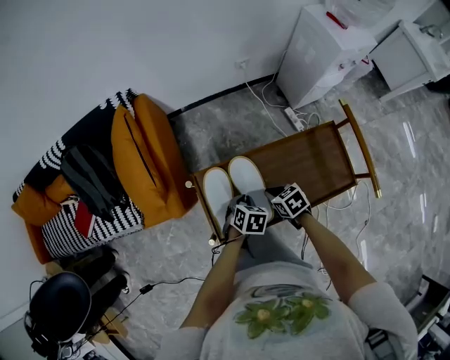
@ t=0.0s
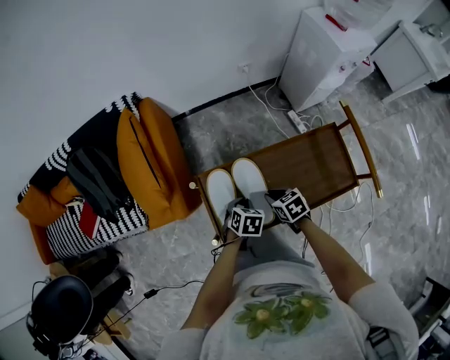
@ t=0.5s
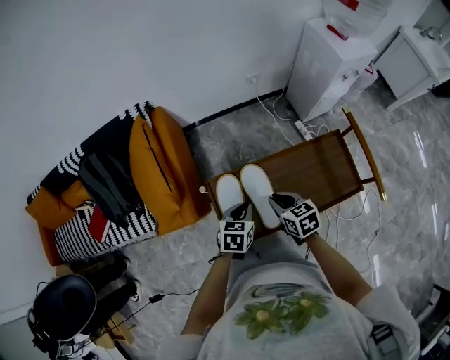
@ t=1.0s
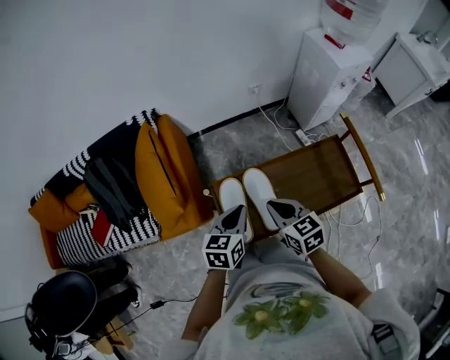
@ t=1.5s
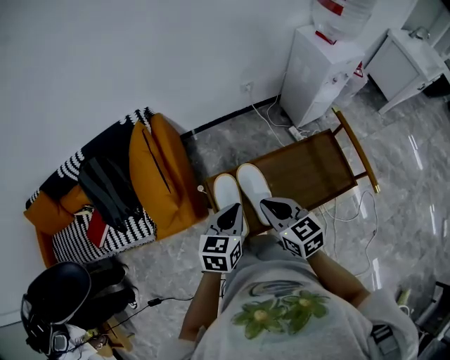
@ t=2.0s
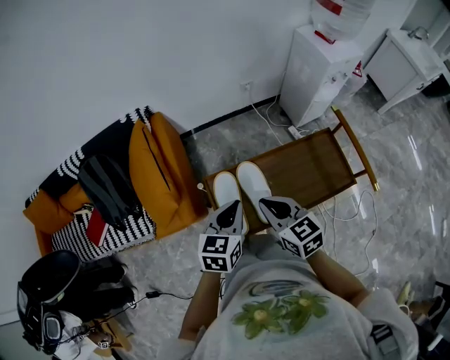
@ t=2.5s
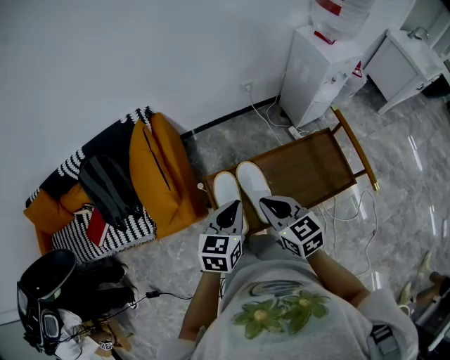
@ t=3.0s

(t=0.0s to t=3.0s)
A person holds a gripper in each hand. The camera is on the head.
t=0.0s - t=1.5s: Both grippers travel together upward, approximately 20 cm. The left gripper tilts its fingers some 30 degrees upward. Meanwhile the right gripper turns by about 30 degrees.
t=1.5s - t=3.0s: The right gripper moves upward, about 5 cm.

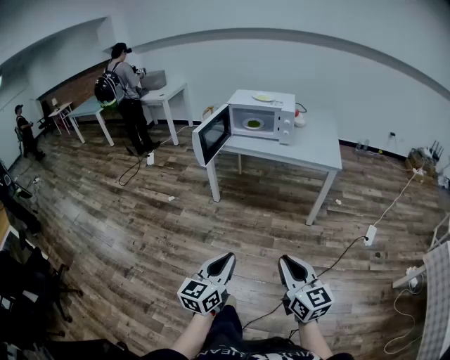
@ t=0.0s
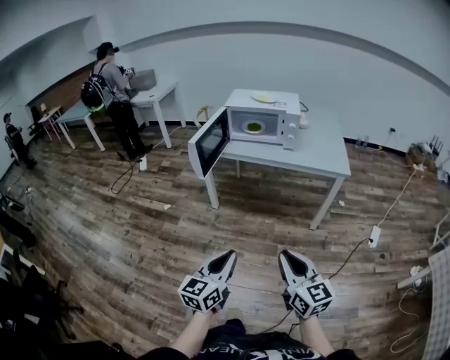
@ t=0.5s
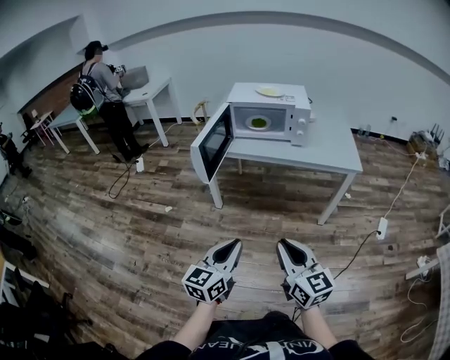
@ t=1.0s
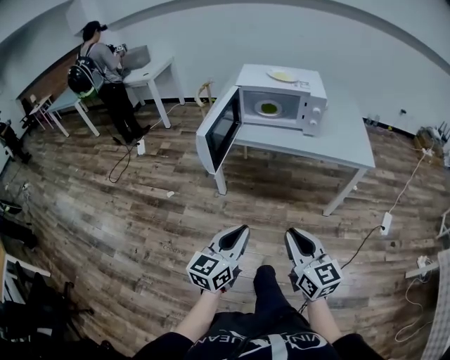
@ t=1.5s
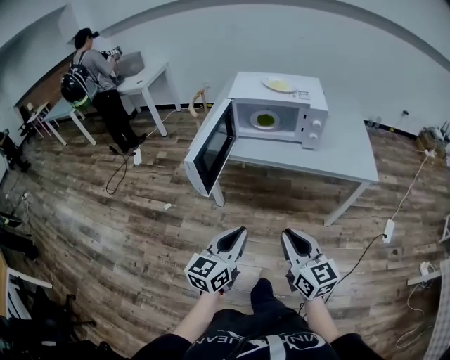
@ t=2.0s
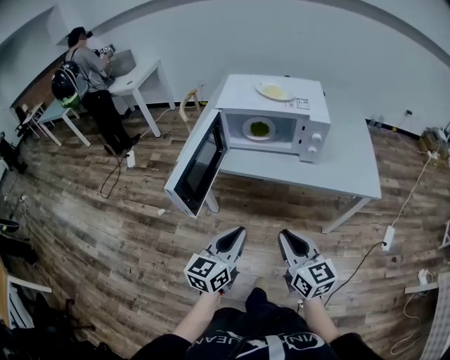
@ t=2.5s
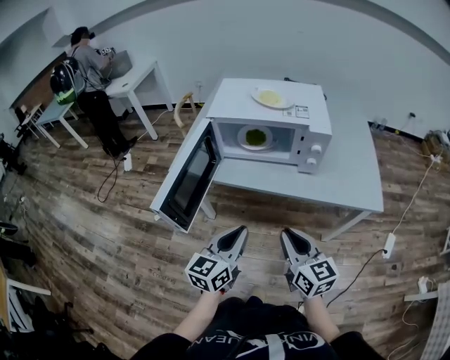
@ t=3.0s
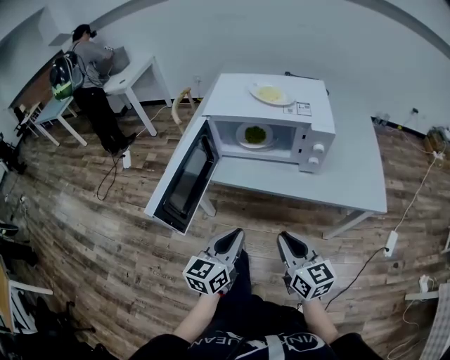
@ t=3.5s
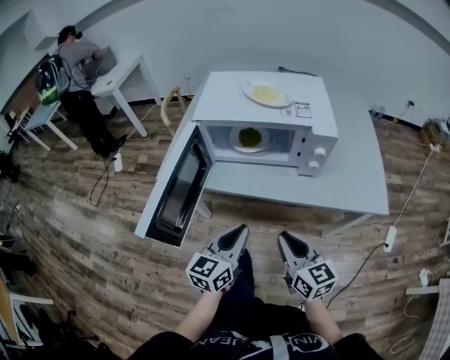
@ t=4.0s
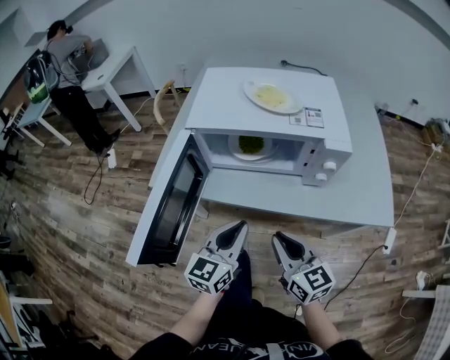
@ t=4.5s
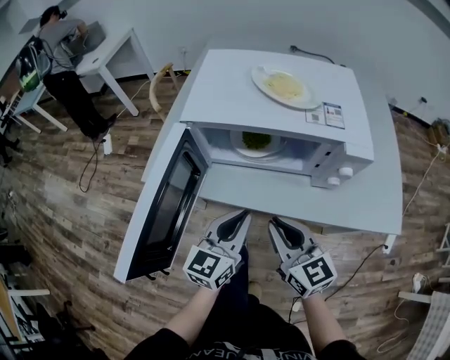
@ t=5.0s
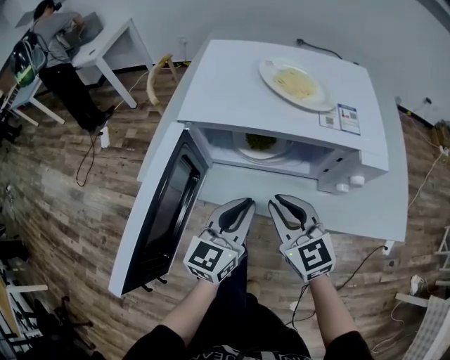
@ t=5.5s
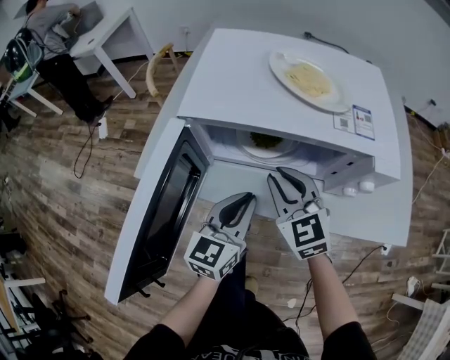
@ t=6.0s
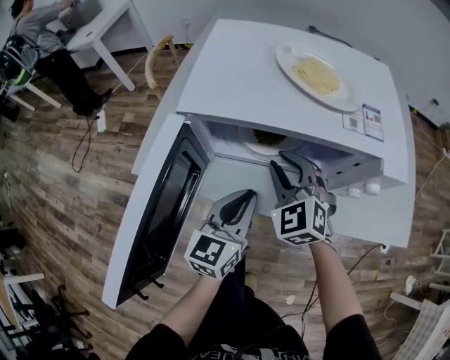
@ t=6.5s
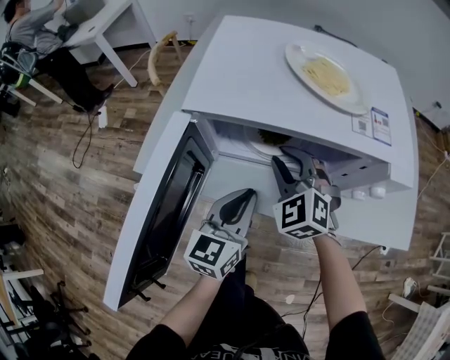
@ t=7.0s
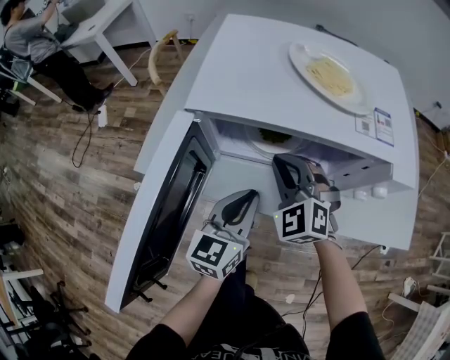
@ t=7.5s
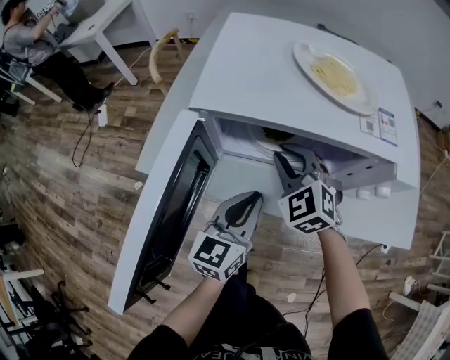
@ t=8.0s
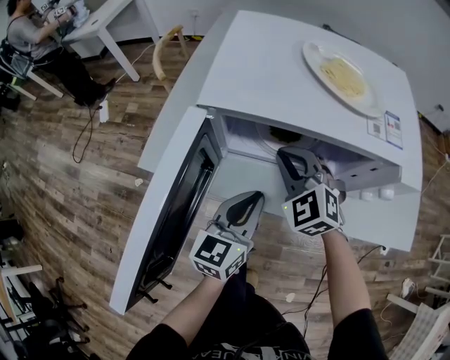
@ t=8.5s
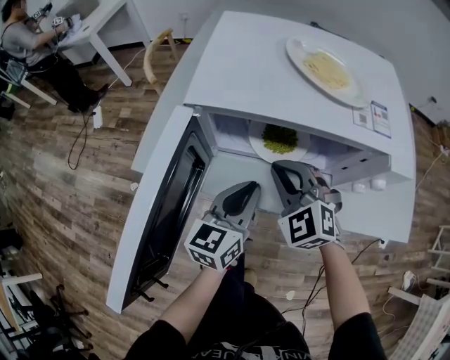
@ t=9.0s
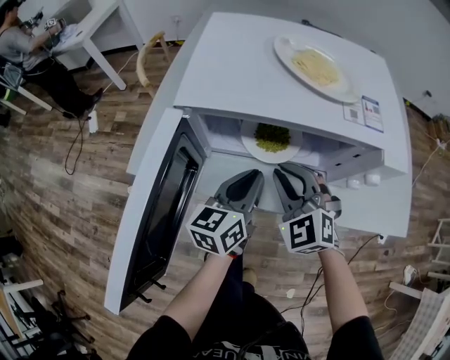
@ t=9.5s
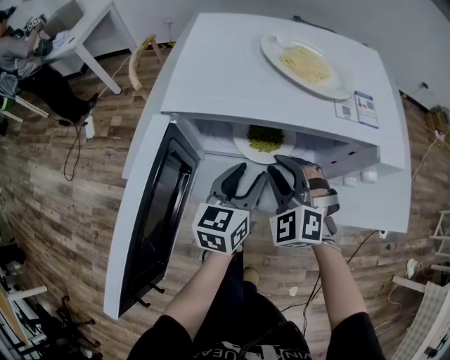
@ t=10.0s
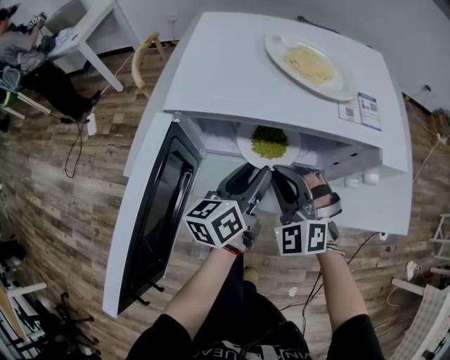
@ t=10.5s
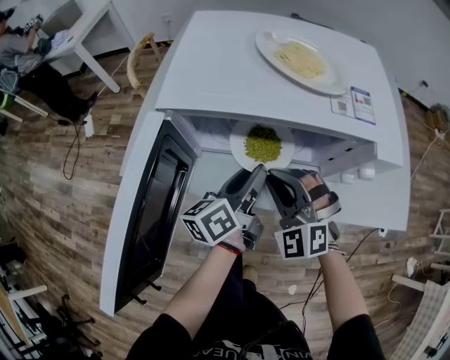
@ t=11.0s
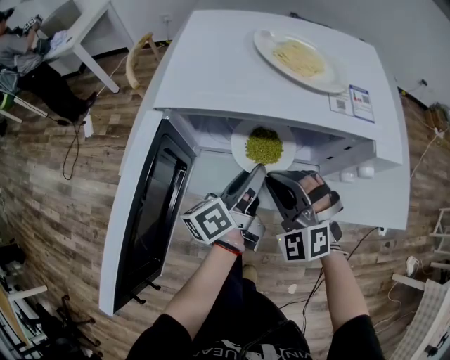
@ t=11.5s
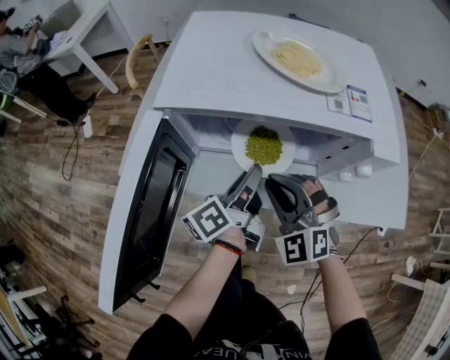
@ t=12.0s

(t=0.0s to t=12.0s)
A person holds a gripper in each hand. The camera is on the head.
t=0.0s - t=2.0s: Both grippers move forward, approximately 35 cm.
t=2.0s - t=4.0s: Both grippers travel together forward, approximately 25 cm.
t=4.0s - t=6.0s: Both grippers travel together forward, roughly 20 cm. The right gripper swivels approximately 30 degrees.
t=6.0s - t=8.0s: The right gripper goes approximately 5 cm forward, and changes its angle by approximately 20 degrees.
t=8.0s - t=10.0s: The right gripper moves about 5 cm; the left gripper heads forward, covering roughly 5 cm, and opens up.
t=10.0s - t=12.0s: The right gripper heads backward, covering some 5 cm. Meanwhile the left gripper twists roughly 50 degrees counterclockwise, seen from behind, and closes.

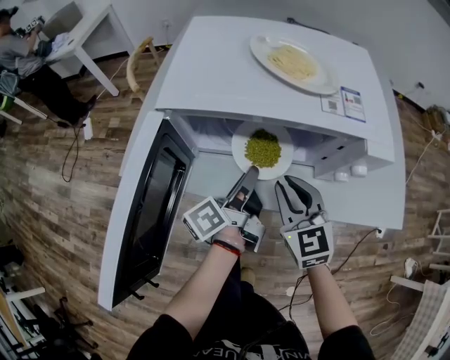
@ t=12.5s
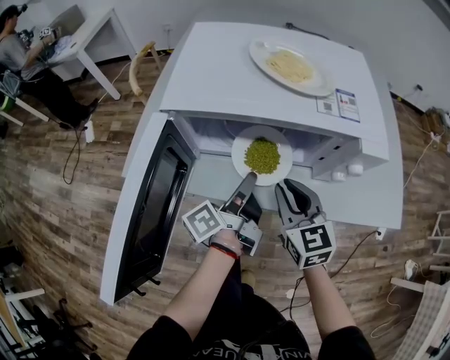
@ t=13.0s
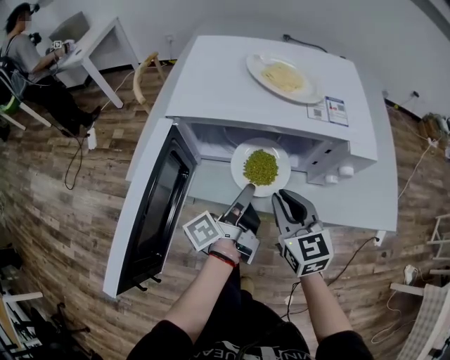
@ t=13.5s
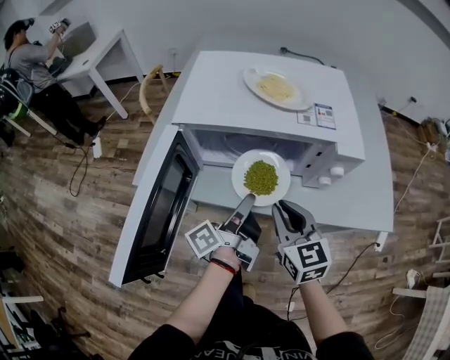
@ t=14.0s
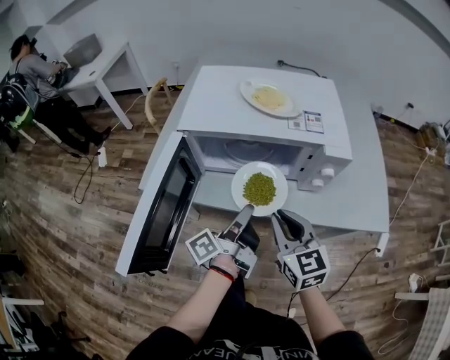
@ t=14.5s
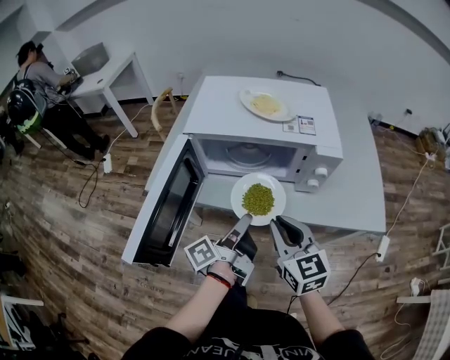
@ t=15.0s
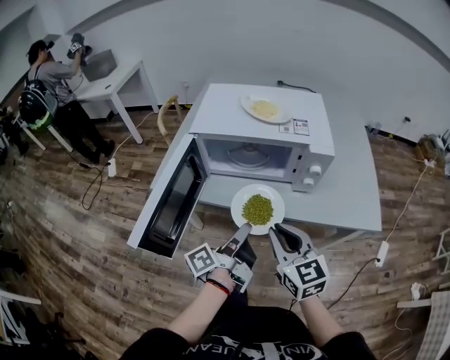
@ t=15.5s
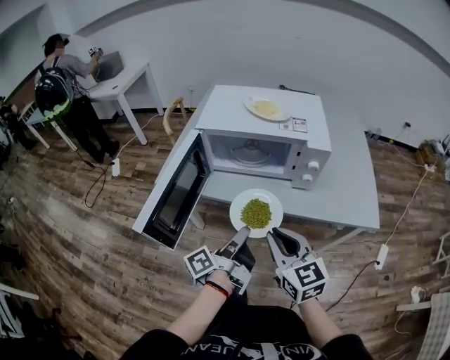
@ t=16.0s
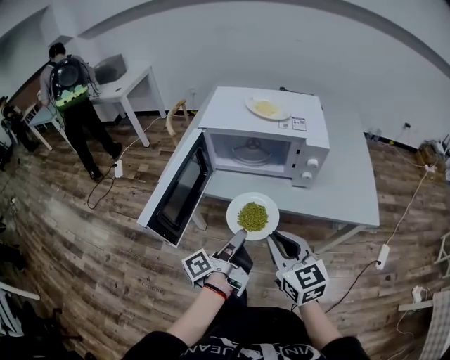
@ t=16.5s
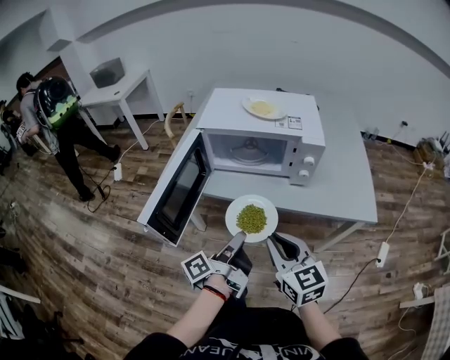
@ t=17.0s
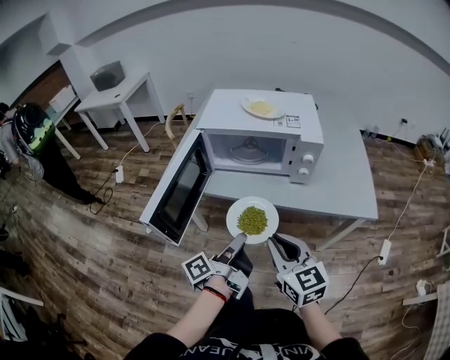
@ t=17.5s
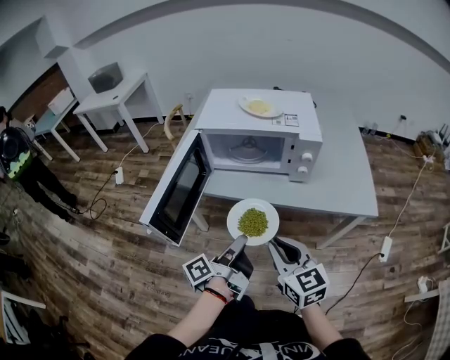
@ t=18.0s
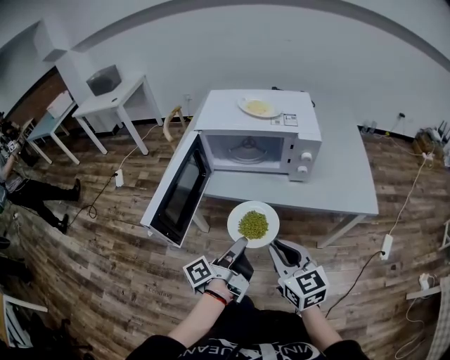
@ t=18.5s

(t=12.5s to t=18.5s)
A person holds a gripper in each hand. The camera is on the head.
t=12.5s - t=14.5s: The right gripper travels backward and upward by about 10 cm, while the left gripper goes approximately 10 cm backward.
t=14.5s - t=16.5s: Both grippers move backward, approximately 15 cm.
t=16.5s - t=18.5s: The grippers move only a little.

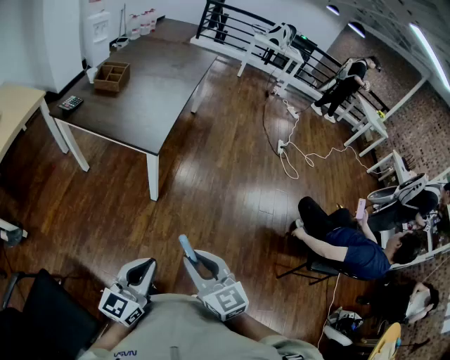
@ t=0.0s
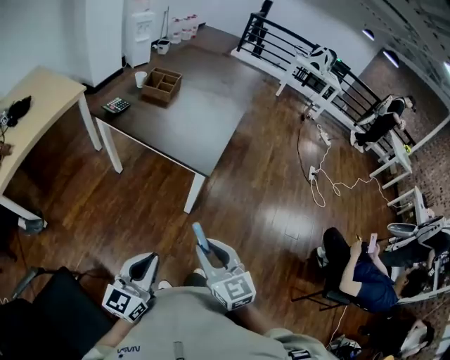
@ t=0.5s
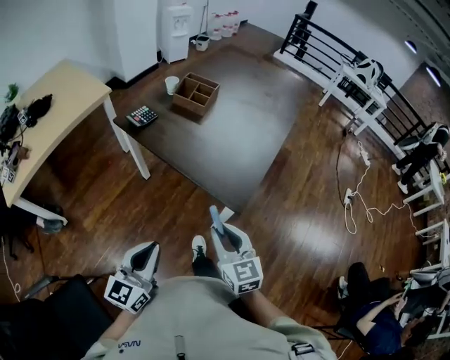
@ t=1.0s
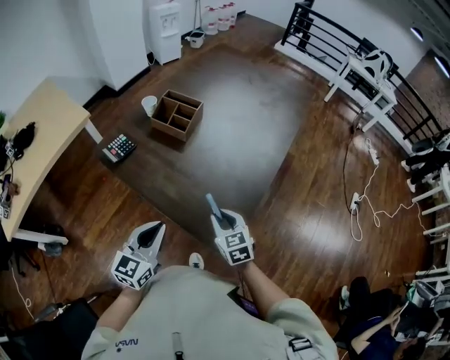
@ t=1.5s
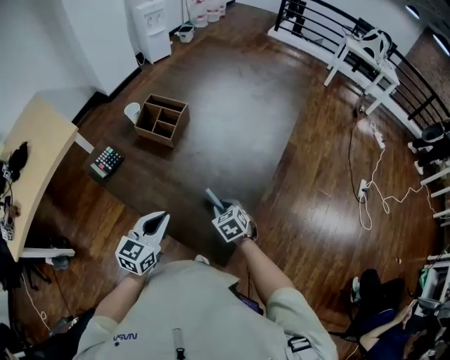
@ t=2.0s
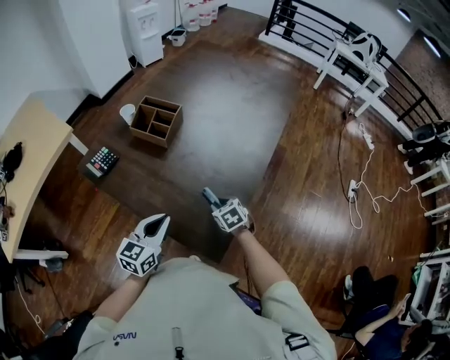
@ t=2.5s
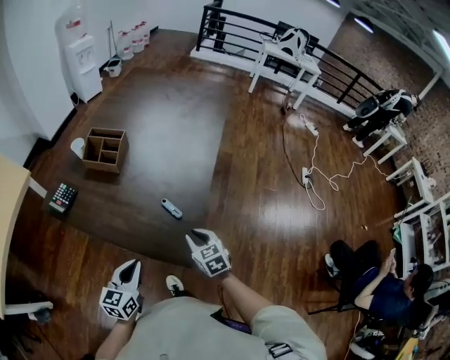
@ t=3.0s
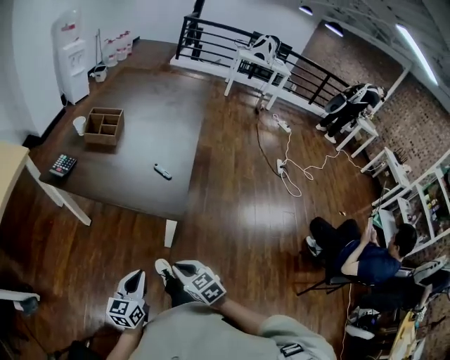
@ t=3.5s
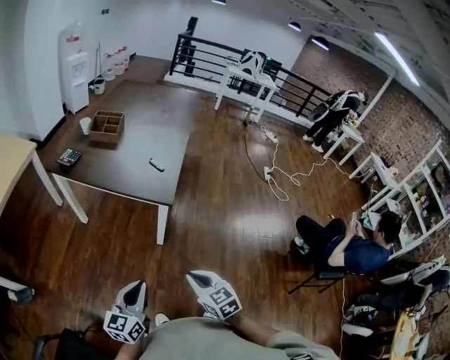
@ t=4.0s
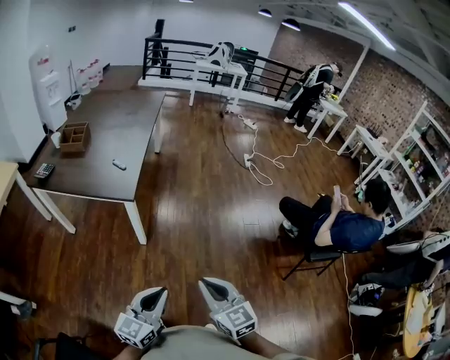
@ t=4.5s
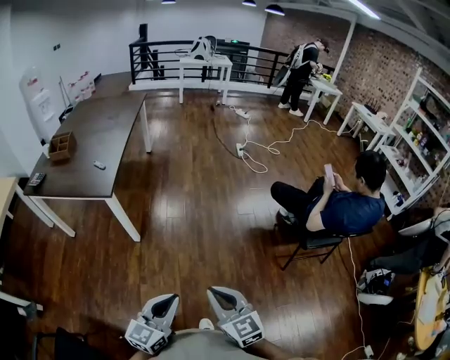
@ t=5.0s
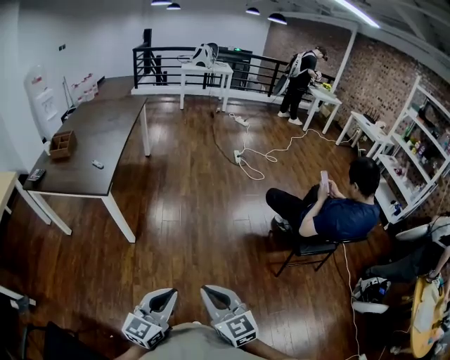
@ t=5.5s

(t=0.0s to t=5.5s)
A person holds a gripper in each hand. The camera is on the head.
t=0.0s - t=2.0s: The pair of grippers is taken forward, some 60 cm. The right gripper angles its fingers downward, by about 40 degrees. Meanwhile the left gripper rotates approximately 20 degrees.
t=2.0s - t=3.5s: The two grippers go some 35 cm backward.
t=3.5s - t=5.5s: The two grippers travel together, approximately 50 cm. The right gripper turns by some 40 degrees; the left gripper turns by some 30 degrees.
